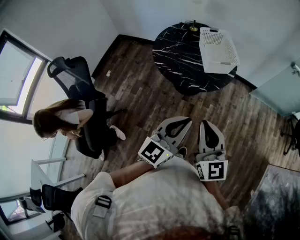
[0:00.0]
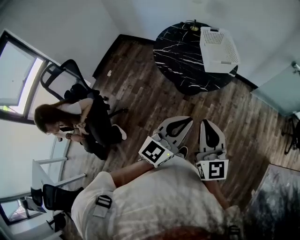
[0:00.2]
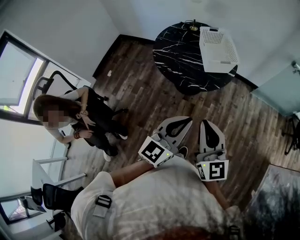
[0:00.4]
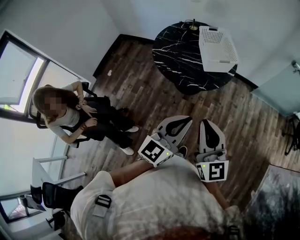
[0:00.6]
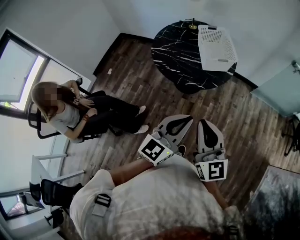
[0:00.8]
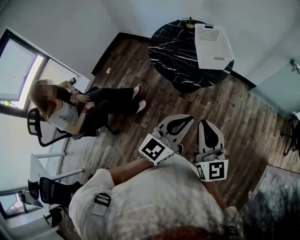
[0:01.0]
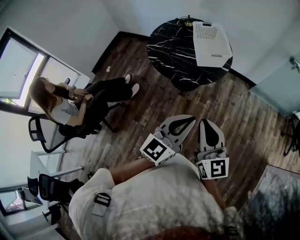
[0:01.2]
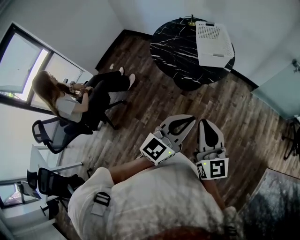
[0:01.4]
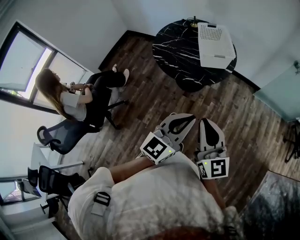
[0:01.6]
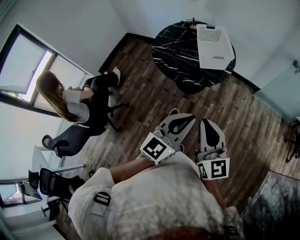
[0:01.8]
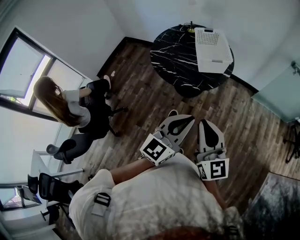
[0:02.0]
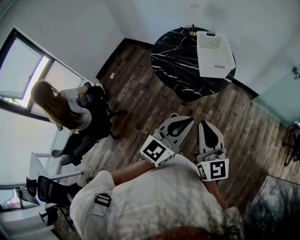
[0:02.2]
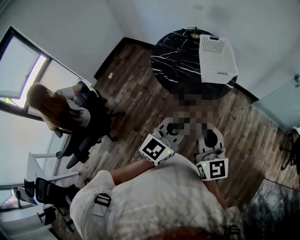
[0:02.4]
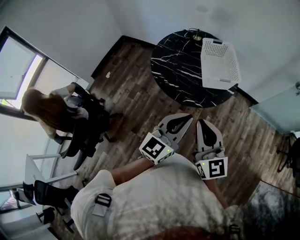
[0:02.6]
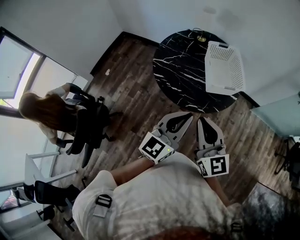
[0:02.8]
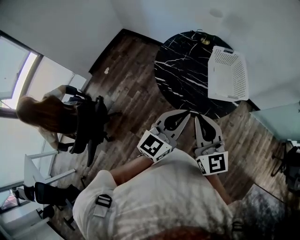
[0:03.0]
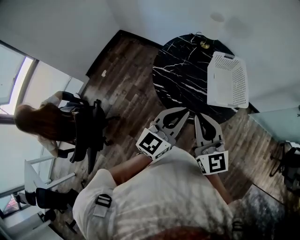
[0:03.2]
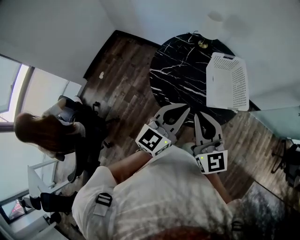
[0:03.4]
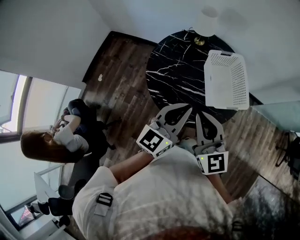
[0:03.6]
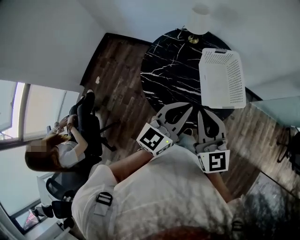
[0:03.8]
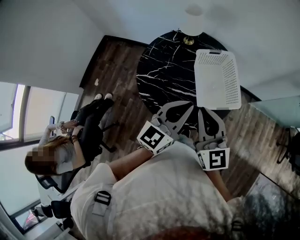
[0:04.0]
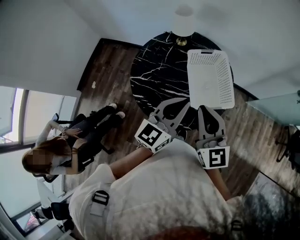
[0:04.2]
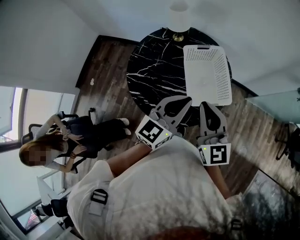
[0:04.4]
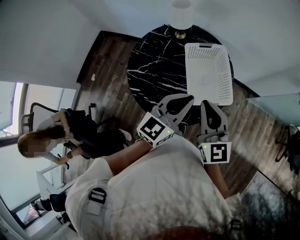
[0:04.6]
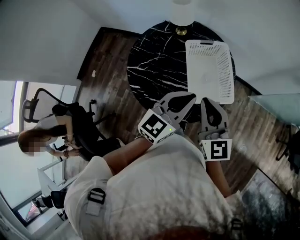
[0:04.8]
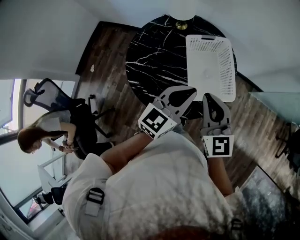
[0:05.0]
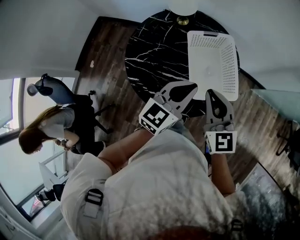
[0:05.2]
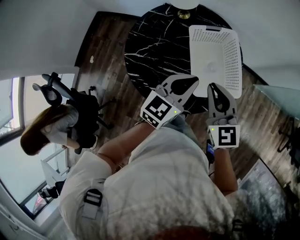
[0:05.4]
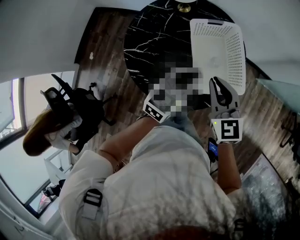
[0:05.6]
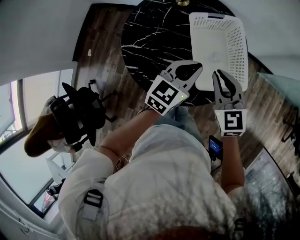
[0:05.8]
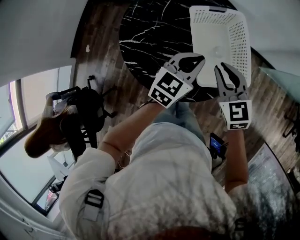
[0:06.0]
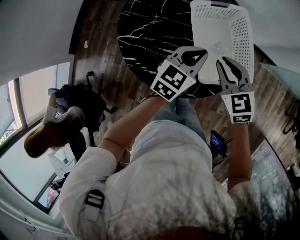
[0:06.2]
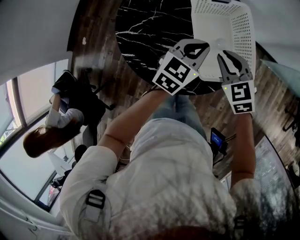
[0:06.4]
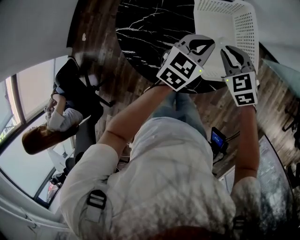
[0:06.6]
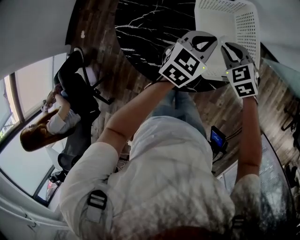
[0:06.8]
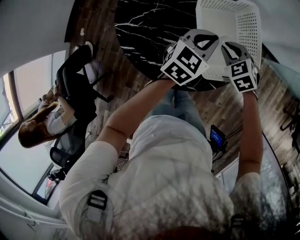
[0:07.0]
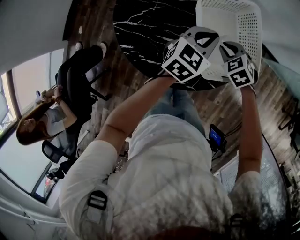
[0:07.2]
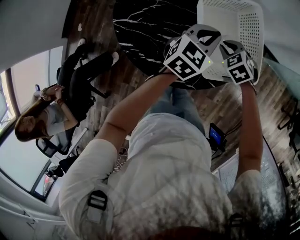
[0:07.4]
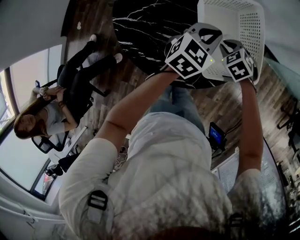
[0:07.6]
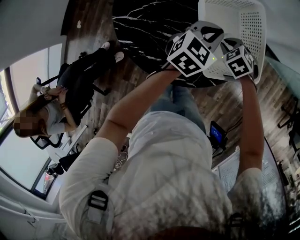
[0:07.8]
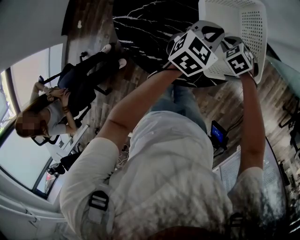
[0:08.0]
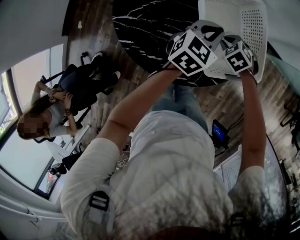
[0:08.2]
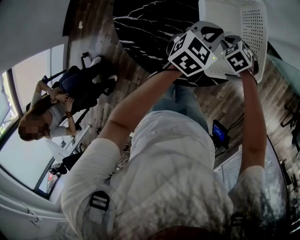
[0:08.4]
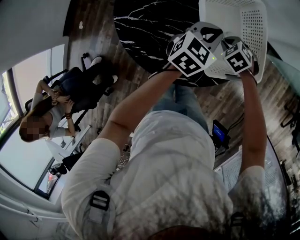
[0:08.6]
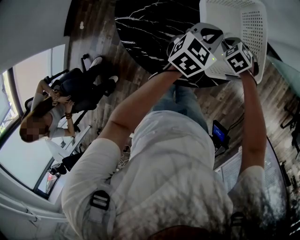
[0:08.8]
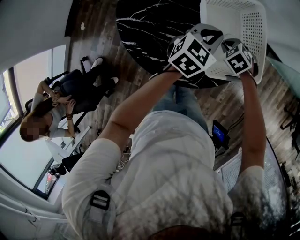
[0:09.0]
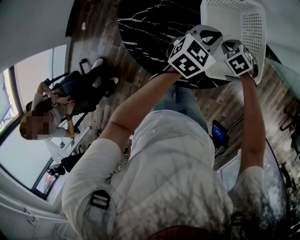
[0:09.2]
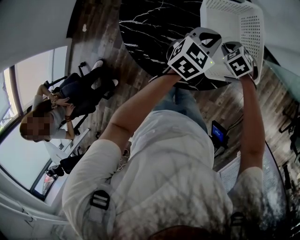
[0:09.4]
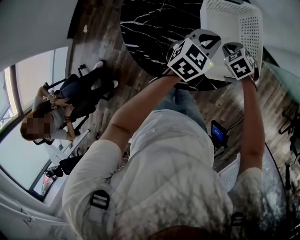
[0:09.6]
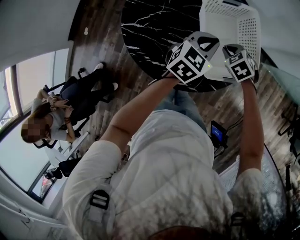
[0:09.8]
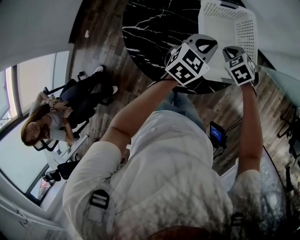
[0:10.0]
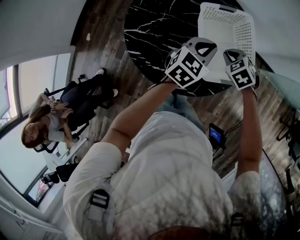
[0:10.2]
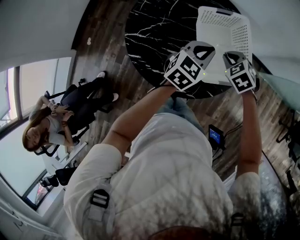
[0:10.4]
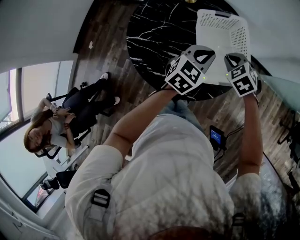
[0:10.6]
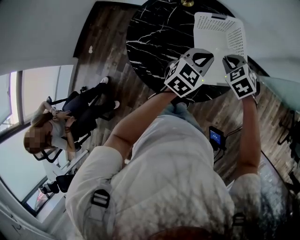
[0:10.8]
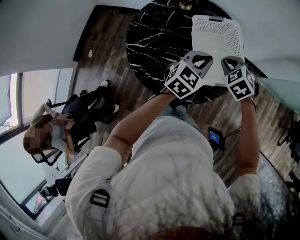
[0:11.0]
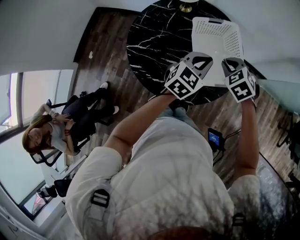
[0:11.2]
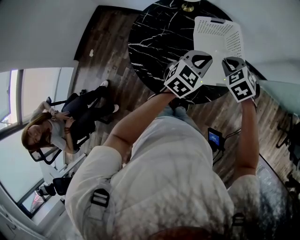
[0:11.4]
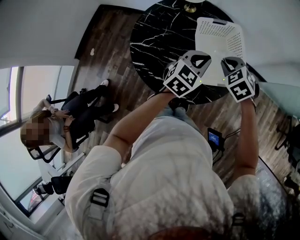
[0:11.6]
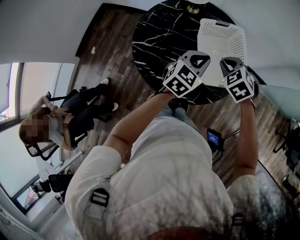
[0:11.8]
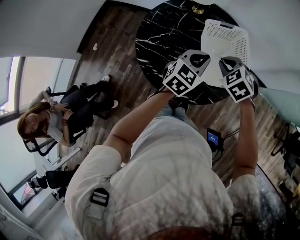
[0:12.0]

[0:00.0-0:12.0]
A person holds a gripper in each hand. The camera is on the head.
0:00.0 to 0:01.6: The grippers both shift to the right by approximately 10 cm.
0:01.6 to 0:03.0: The grippers both shift forward and to the left by roughly 35 cm.
0:03.0 to 0:04.4: The two grippers go roughly 25 cm forward and to the right.
0:04.4 to 0:06.0: The grippers both shift downward and forward by some 20 cm. The left gripper changes its angle by some 20 degrees. The right gripper turns by approximately 30 degrees.
0:06.0 to 0:07.6: The left gripper shifts approximately 10 cm forward and downward; the right gripper is displaced downward by roughly 20 cm, and tilts its fingers roughly 40 degrees downward.
0:07.6 to 0:09.0: The grippers make only small movements.
0:09.0 to 0:10.4: The left gripper moves upward, about 5 cm. The right gripper shifts some 15 cm upward.
0:10.4 to 0:12.0: The right gripper goes roughly 10 cm upward; the left gripper ends up about 5 cm from where it was.

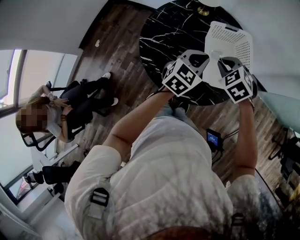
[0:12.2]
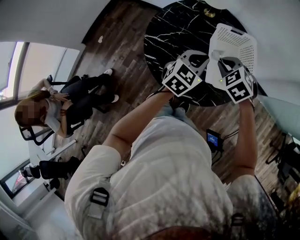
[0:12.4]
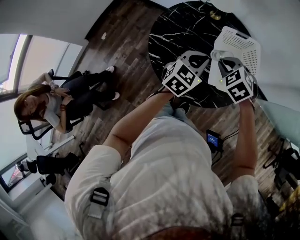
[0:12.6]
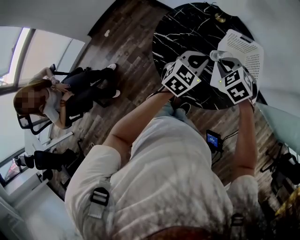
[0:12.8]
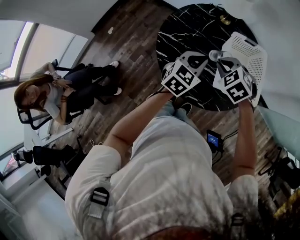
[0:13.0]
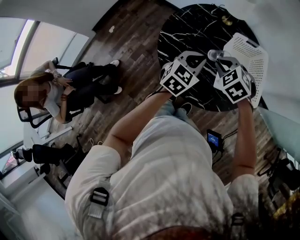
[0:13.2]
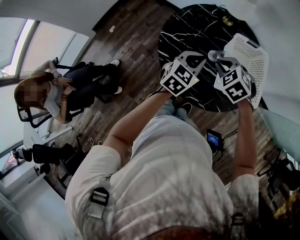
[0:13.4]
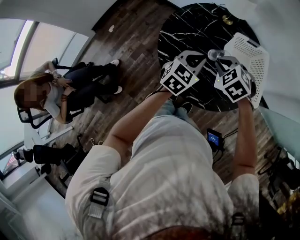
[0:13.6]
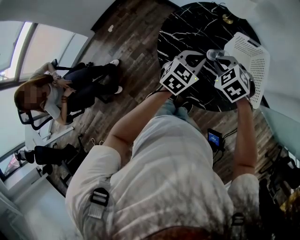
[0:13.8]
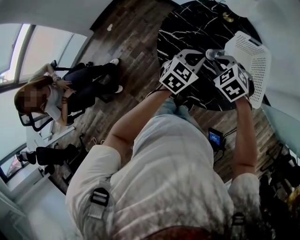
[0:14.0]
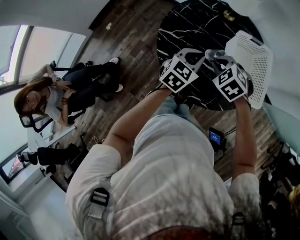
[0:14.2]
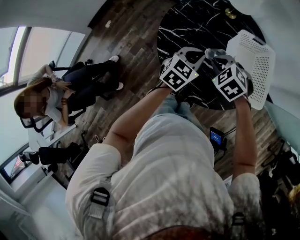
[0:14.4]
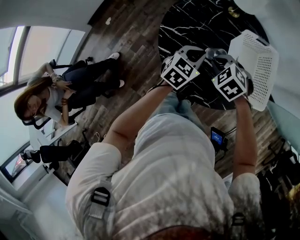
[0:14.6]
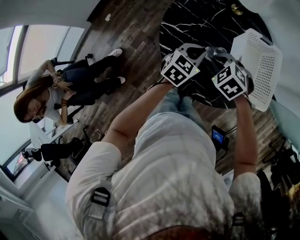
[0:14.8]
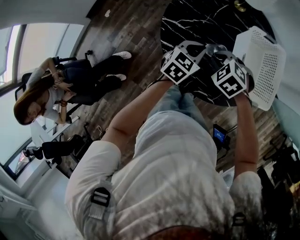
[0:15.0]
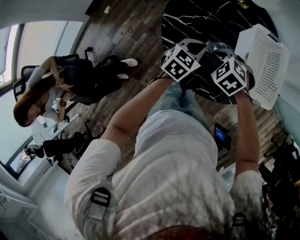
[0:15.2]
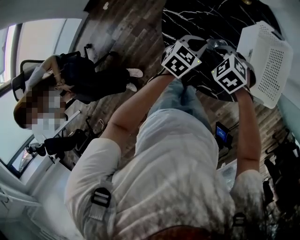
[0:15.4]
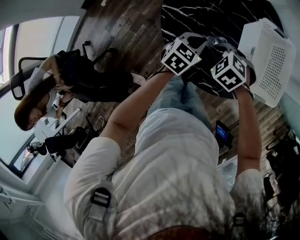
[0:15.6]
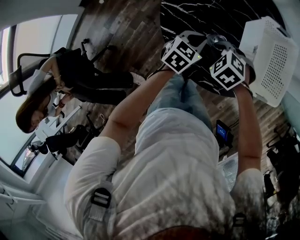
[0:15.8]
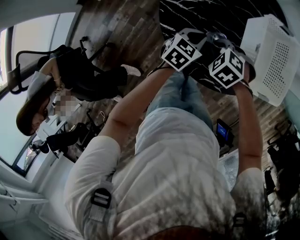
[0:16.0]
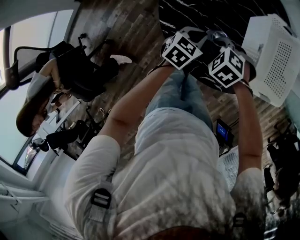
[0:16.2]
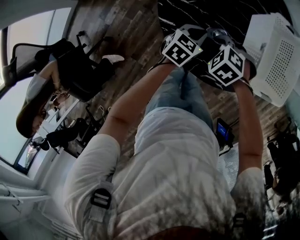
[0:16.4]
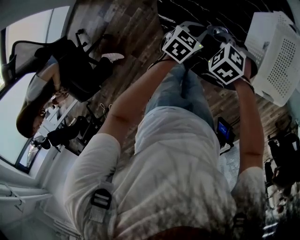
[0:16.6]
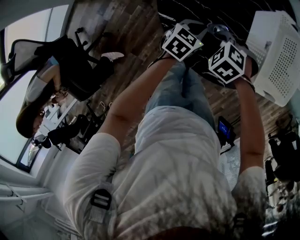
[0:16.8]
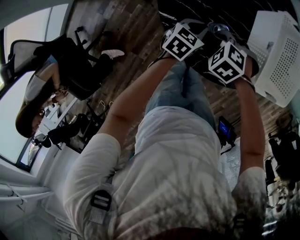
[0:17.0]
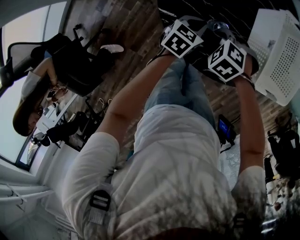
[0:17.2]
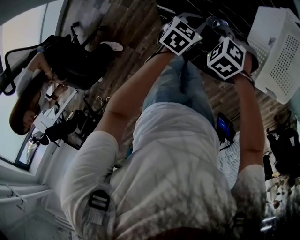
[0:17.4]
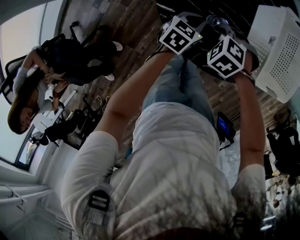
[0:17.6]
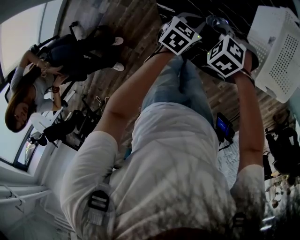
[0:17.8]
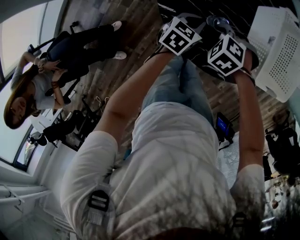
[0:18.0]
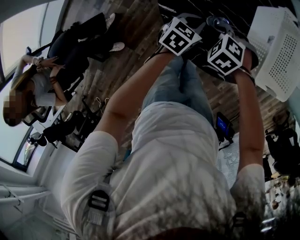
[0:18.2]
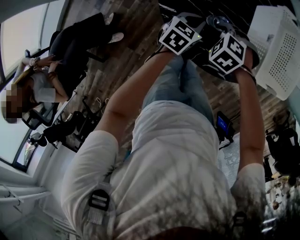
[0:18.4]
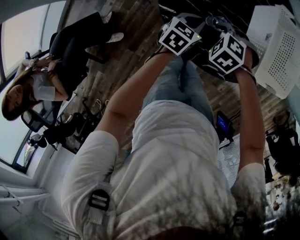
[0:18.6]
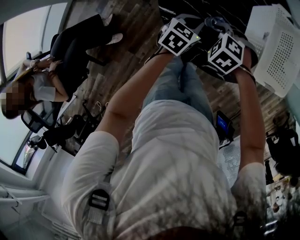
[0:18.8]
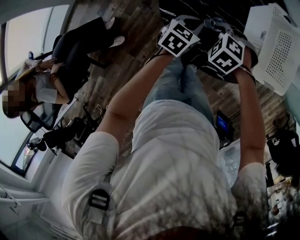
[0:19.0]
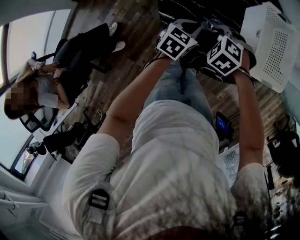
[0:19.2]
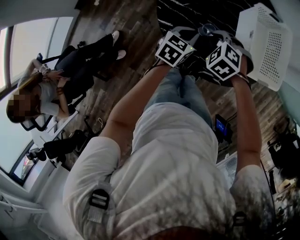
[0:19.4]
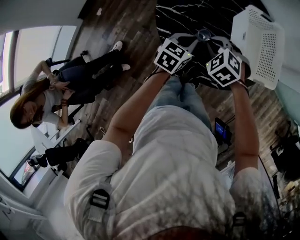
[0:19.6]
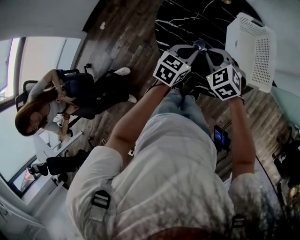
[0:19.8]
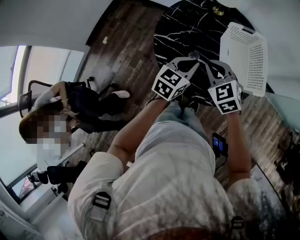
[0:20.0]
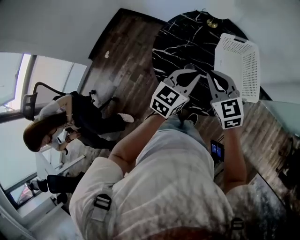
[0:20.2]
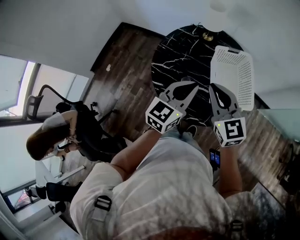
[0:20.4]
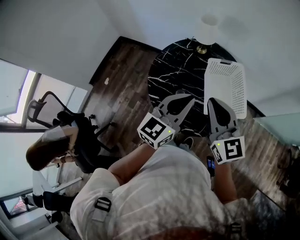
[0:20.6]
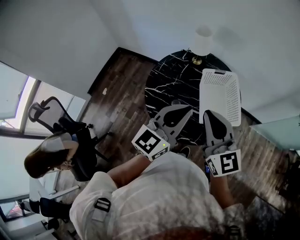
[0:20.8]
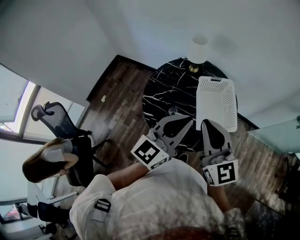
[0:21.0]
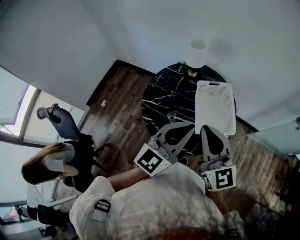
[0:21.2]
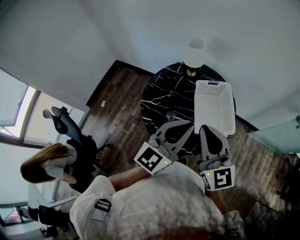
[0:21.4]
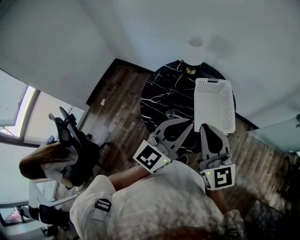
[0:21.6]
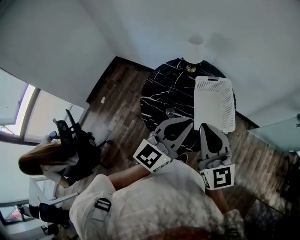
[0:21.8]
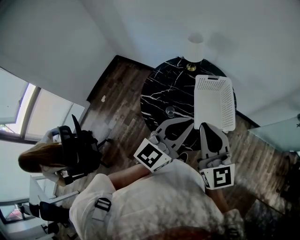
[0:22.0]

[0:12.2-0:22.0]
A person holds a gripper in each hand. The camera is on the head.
0:12.2 to 0:13.6: Both grippers travel together to the left, approximately 10 cm.
0:13.6 to 0:15.0: The grippers both shift downward by about 10 cm.
0:15.0 to 0:16.4: Both grippers travel together downward, roughly 15 cm.
0:16.4 to 0:17.8: There are only small adjustments of the grippers.
0:17.8 to 0:19.2: Both grippers move upward, roughly 5 cm.
0:19.2 to 0:20.6: Both grippers move upward, some 35 cm. The left gripper tilts its fingers approximately 40 degrees upward. The right gripper tilts its fingers about 70 degrees upward.
0:20.6 to 0:22.0: The left gripper is displaced to the right and upward by some 10 cm. The right gripper shifts some 5 cm upward.

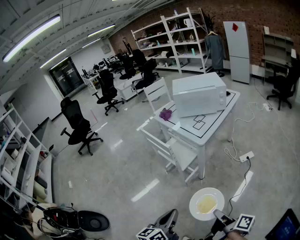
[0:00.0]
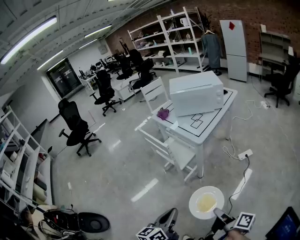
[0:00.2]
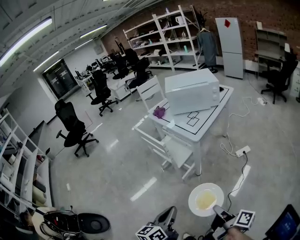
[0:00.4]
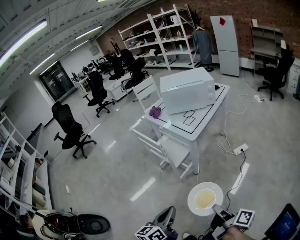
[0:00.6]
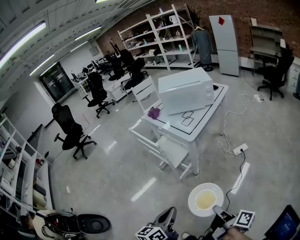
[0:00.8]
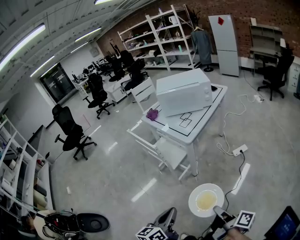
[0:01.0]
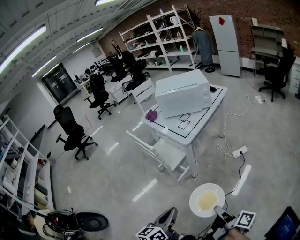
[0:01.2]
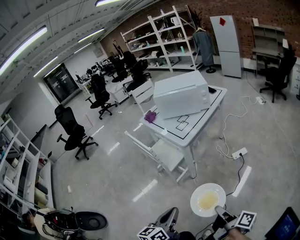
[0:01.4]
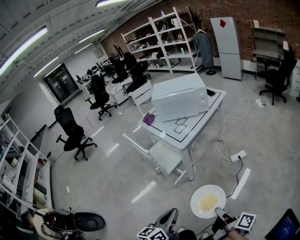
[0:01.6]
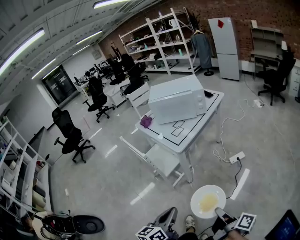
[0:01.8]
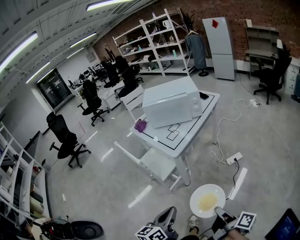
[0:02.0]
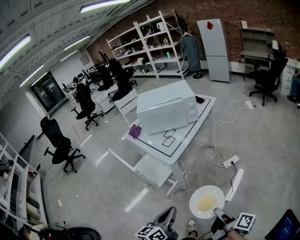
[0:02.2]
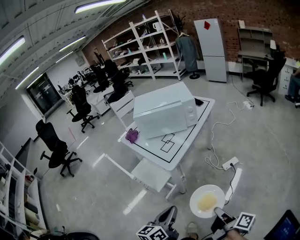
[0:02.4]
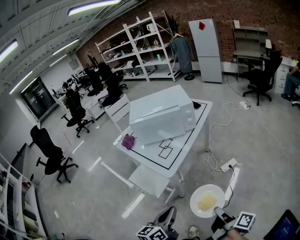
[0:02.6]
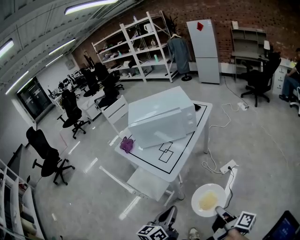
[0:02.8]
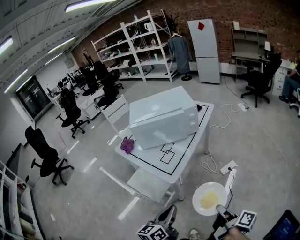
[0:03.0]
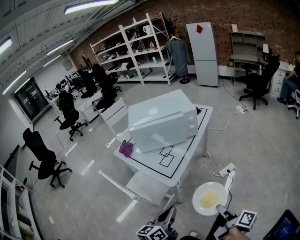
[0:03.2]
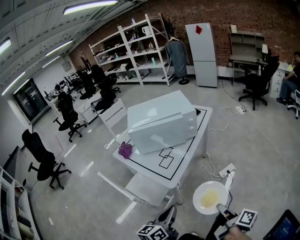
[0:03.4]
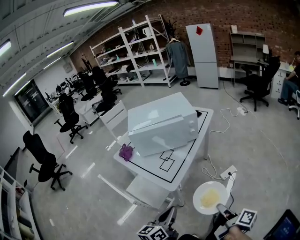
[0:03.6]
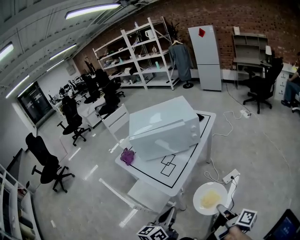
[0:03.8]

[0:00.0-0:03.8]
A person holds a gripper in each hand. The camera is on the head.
0:00.0 to 0:01.2: Both grippers travel together to the right, roughly 10 cm.
0:01.2 to 0:02.6: The grippers both shift forward by roughly 20 cm.
0:02.6 to 0:03.8: Both grippers move forward, roughly 10 cm.
